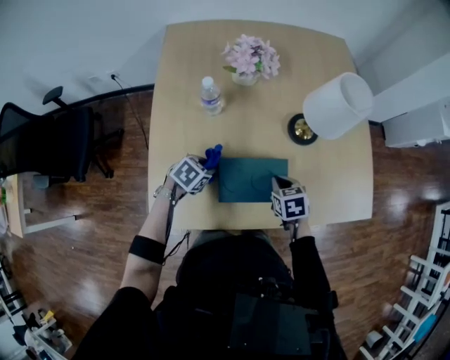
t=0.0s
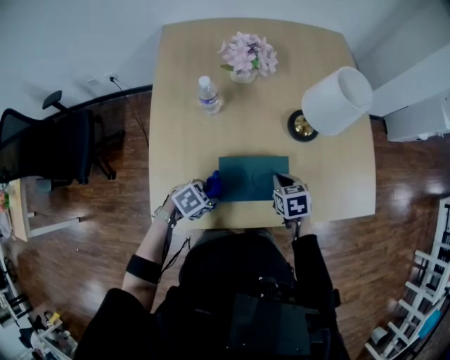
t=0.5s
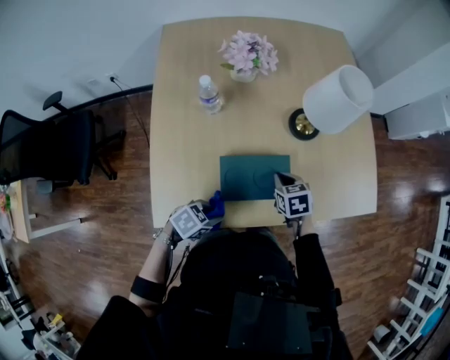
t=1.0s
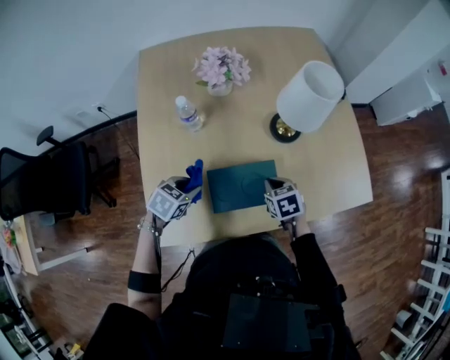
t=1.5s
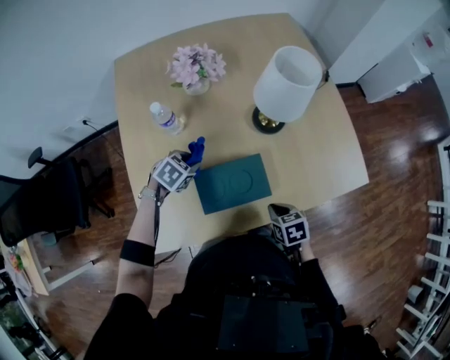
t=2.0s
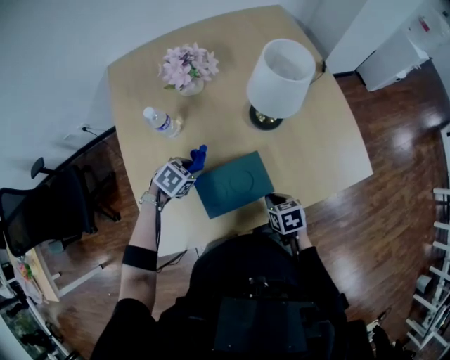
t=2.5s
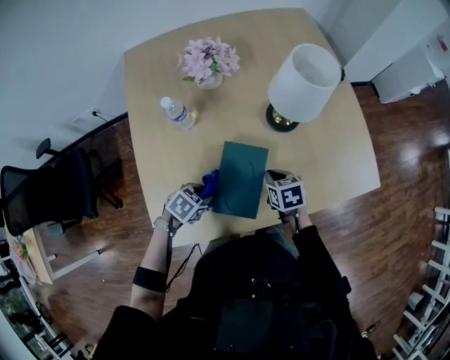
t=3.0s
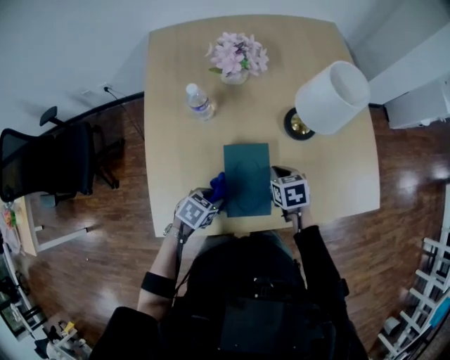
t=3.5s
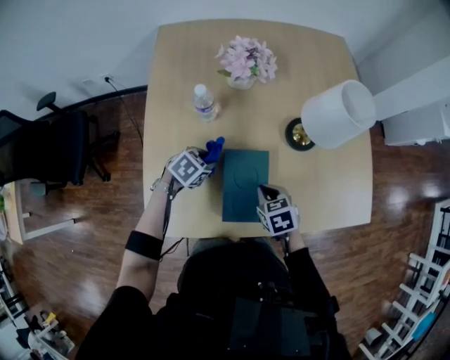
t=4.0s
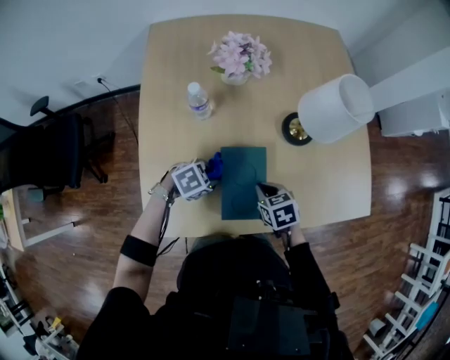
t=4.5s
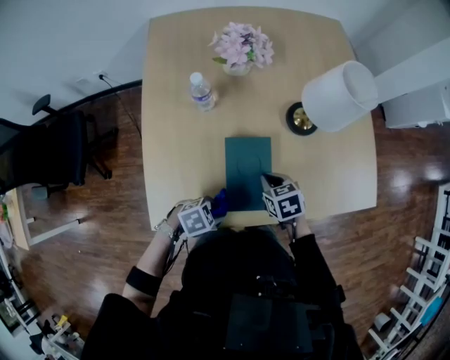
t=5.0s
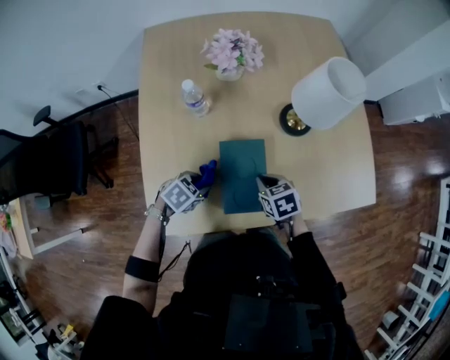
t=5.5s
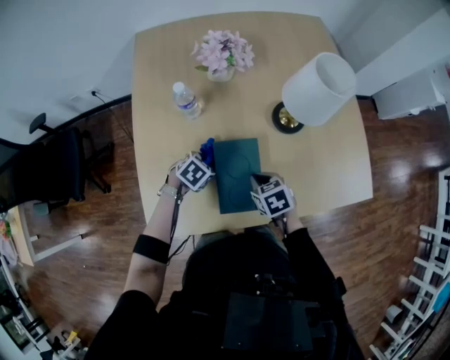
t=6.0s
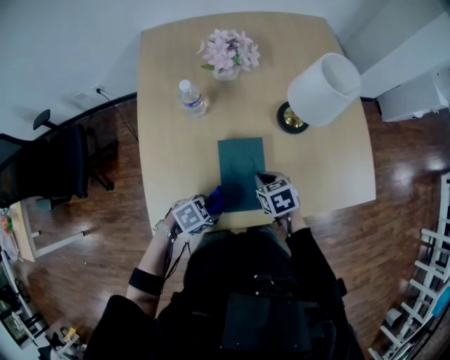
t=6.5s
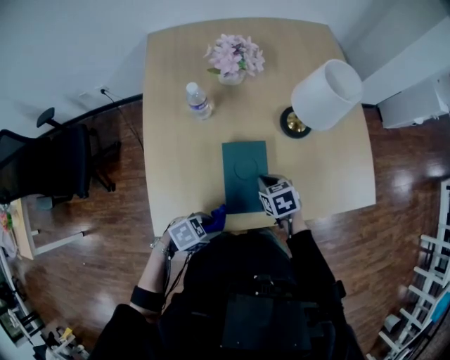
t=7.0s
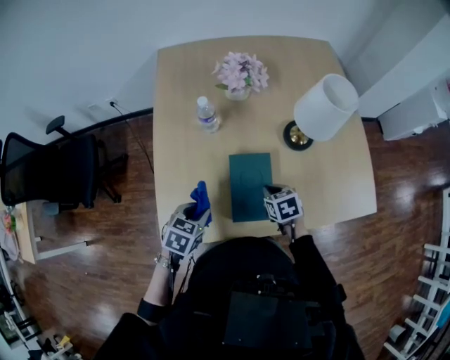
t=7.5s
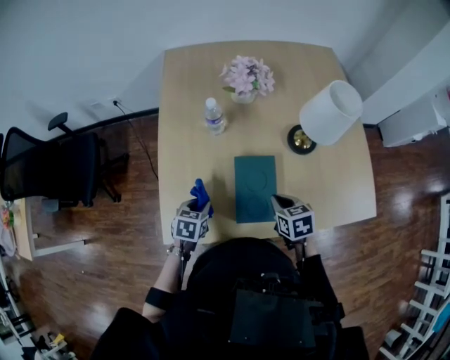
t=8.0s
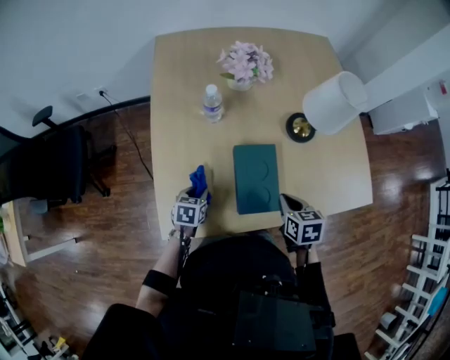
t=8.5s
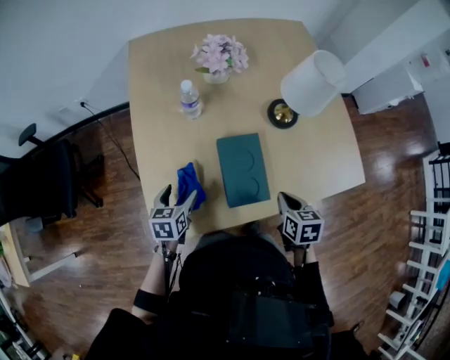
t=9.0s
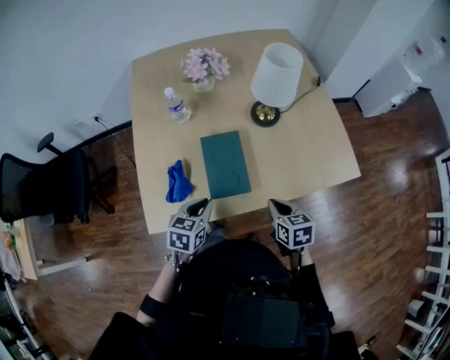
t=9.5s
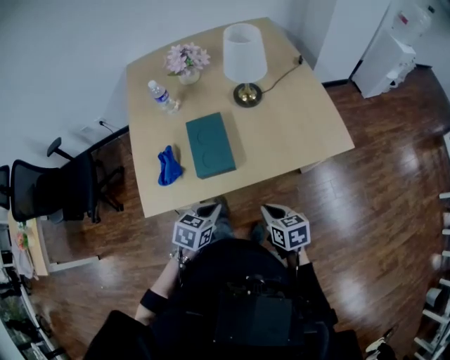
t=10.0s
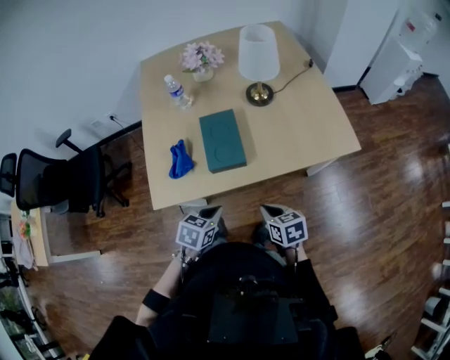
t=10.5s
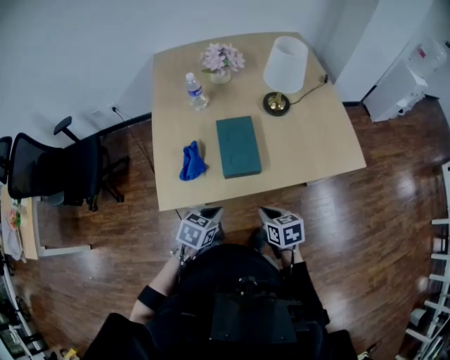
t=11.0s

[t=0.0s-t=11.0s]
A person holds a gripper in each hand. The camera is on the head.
t=0.0s to t=2.0s: The right gripper heads backward and to the right, covering about 10 cm, while the left gripper travels backward and back again, roughly 15 cm each way.
t=2.0s to t=3.5s: The left gripper shifts approximately 15 cm backward, and rotates some 20 degrees. Meanwhile the right gripper is displaced forward and to the left by roughly 15 cm.
t=3.5s to t=5.5s: The right gripper shifts by some 5 cm.
t=5.5s to t=7.5s: The left gripper heads upward, covering roughly 10 cm, and turns by about 30 degrees.
t=7.5s to t=9.0s: The left gripper goes approximately 10 cm to the left and downward, swivels some 20 degrees, and opens up; the right gripper shifts roughly 10 cm backward, upward and to the right, and rotates roughly 30 degrees.
t=9.0s to t=11.0s: The left gripper goes about 25 cm backward and to the right, swivels some 20 degrees, and closes. The right gripper is displaced backward by approximately 15 cm.

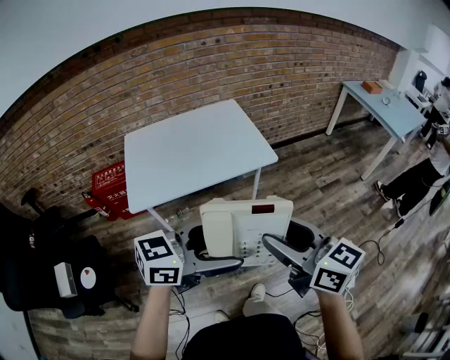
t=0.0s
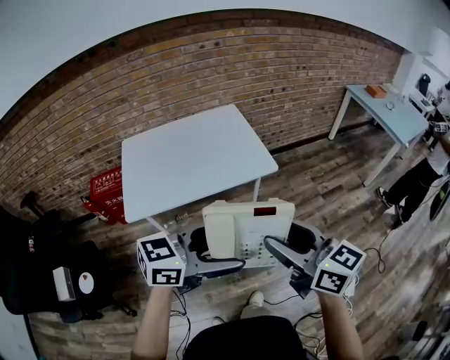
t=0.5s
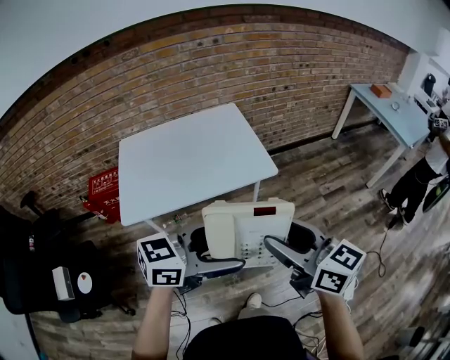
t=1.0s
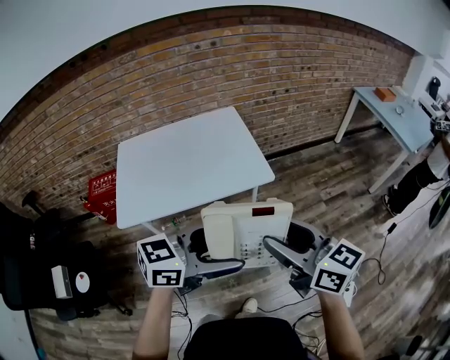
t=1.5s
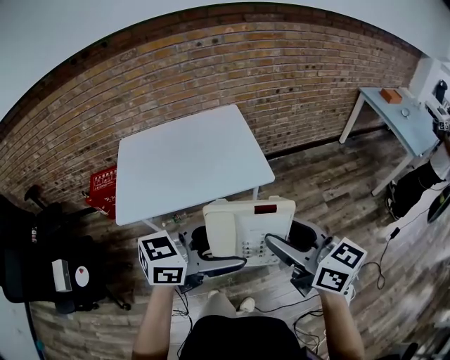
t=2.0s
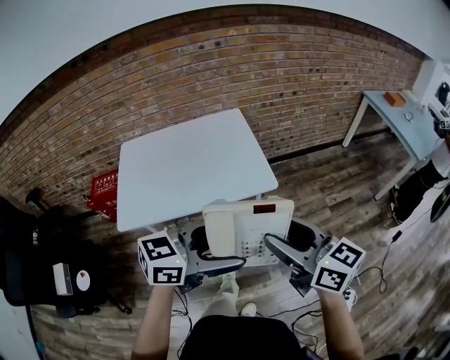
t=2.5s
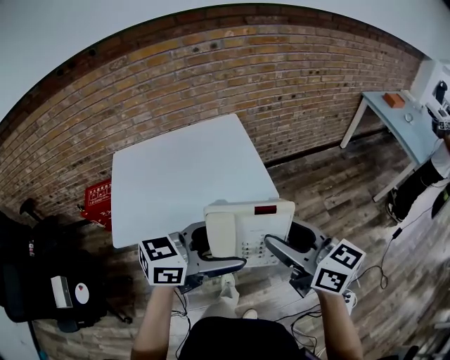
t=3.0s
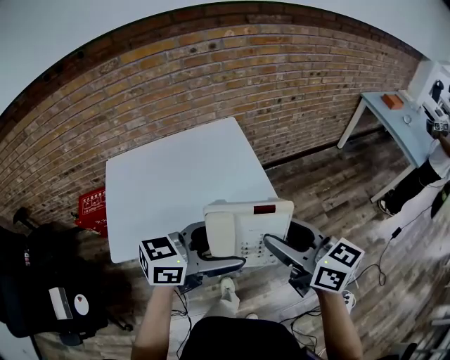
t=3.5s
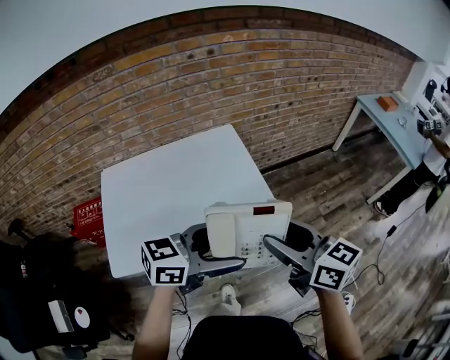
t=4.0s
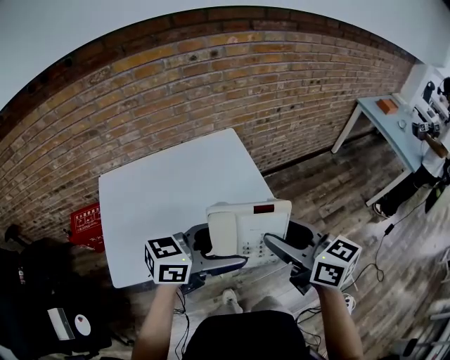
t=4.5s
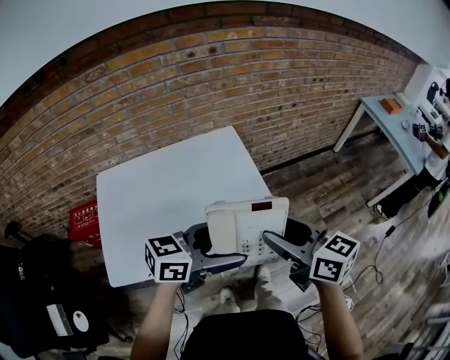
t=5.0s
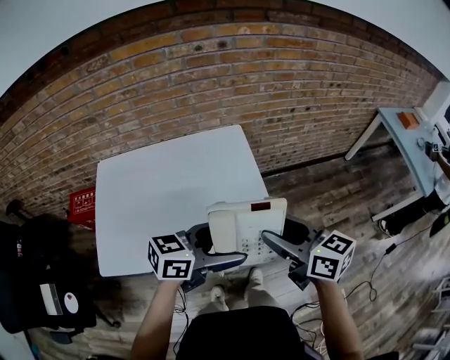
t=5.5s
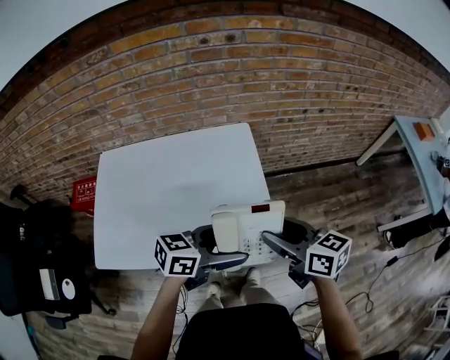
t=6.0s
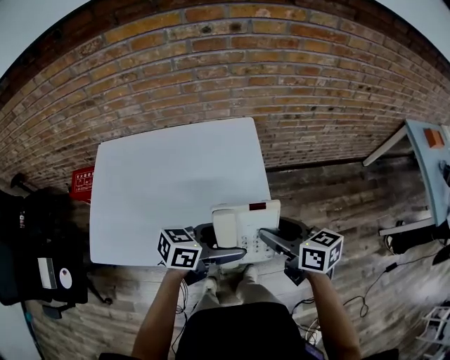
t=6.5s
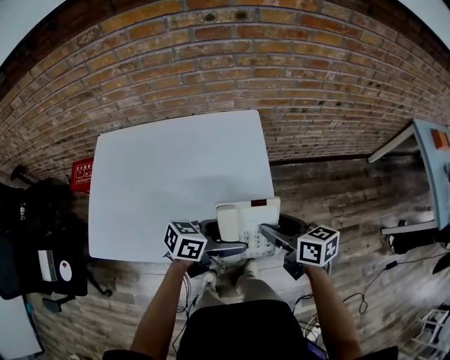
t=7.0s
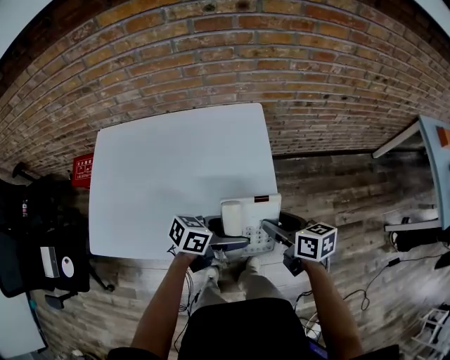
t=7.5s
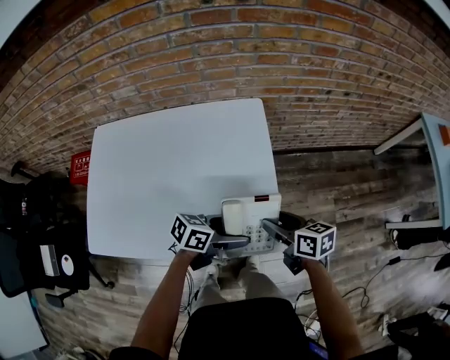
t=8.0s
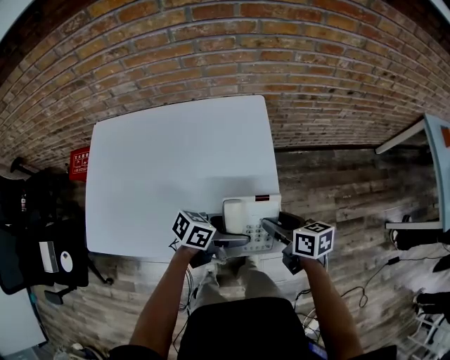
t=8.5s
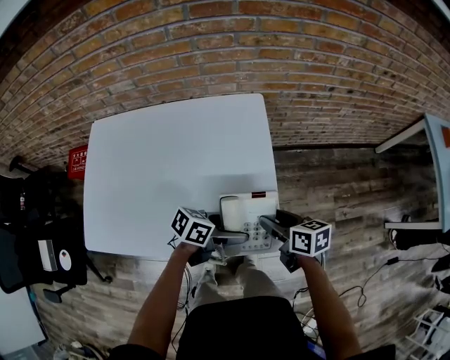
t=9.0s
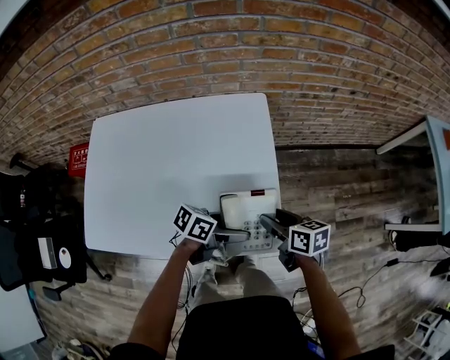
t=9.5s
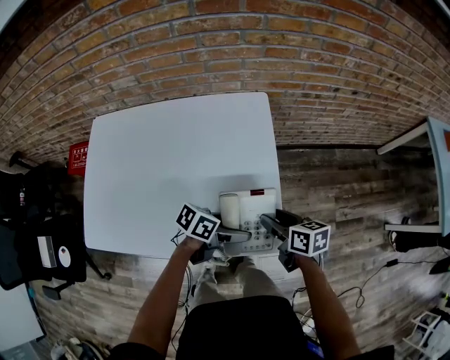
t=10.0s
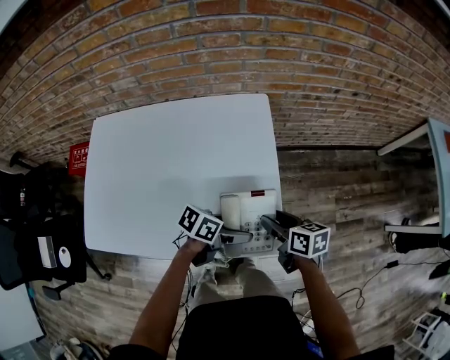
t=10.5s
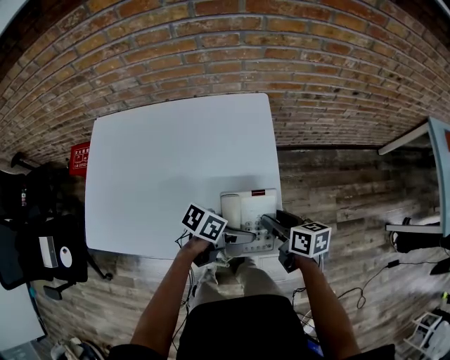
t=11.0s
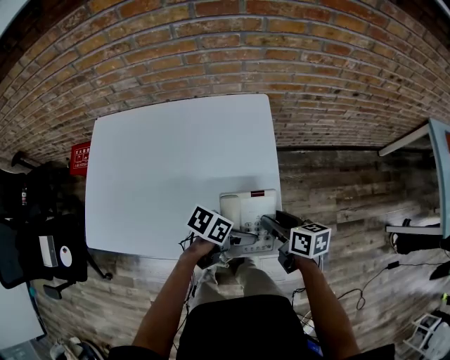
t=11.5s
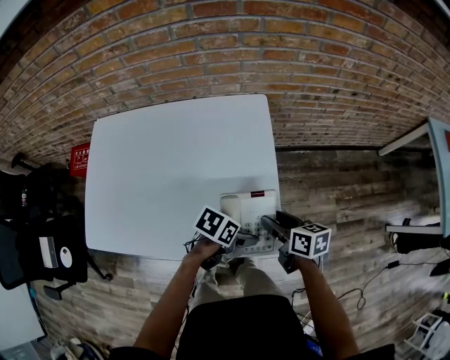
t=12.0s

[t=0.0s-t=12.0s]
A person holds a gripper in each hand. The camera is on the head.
t=0.0s to t=2.0s: Both grippers move forward and to the right, about 15 cm.
t=2.0s to t=4.0s: The two grippers go roughly 20 cm forward and to the left.
t=4.0s to t=6.0s: The grippers both shift forward and downward by about 20 cm.
t=6.0s to t=8.0s: Both grippers move downward, some 15 cm.
t=8.0s to t=10.0s: There are only small adjustments of the grippers.
t=10.0s to t=12.0s: The left gripper turns by roughly 20 degrees.

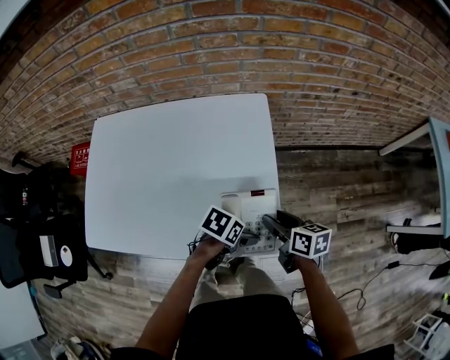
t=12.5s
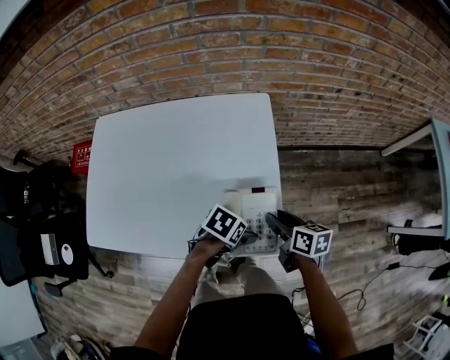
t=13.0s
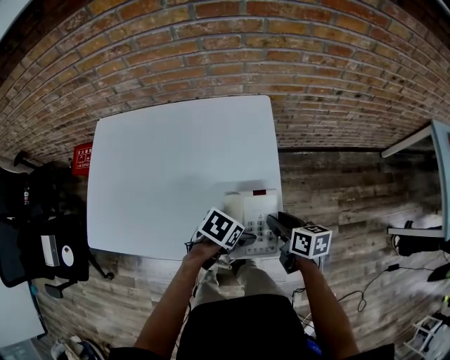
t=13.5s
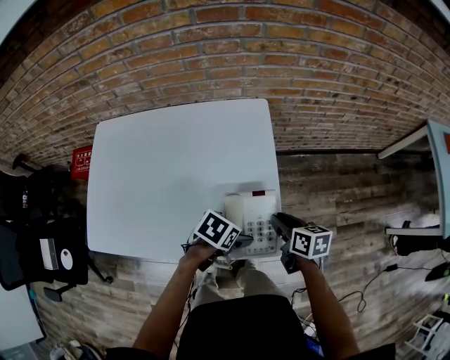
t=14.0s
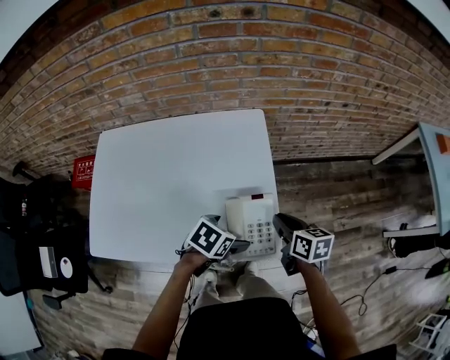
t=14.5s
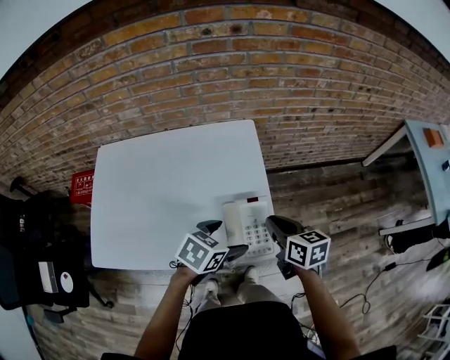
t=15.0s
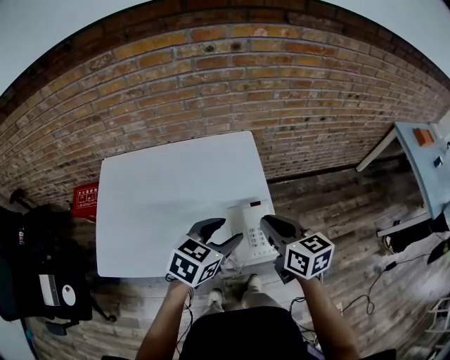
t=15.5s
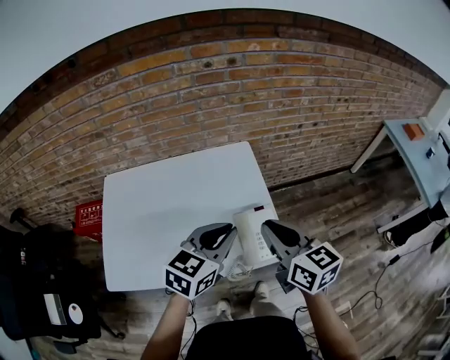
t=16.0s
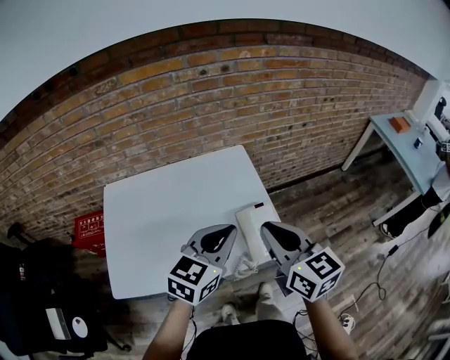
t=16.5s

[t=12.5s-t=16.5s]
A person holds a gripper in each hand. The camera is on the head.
t=12.5s to t=14.5s: The left gripper is displaced upward by about 5 cm. Meanwhile the right gripper closes up.
t=14.5s to t=16.5s: The left gripper is displaced upward by roughly 25 cm, tips its fingers upward by roughly 40 degrees, and closes. The right gripper shifts about 30 cm upward, backward and to the left, and changes its angle by about 40 degrees.
